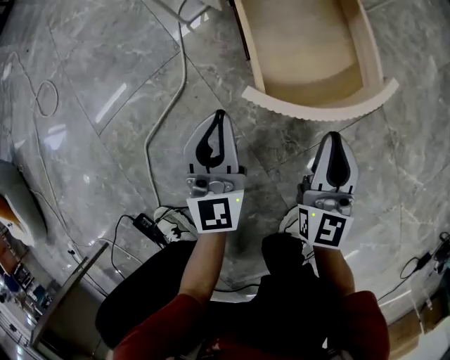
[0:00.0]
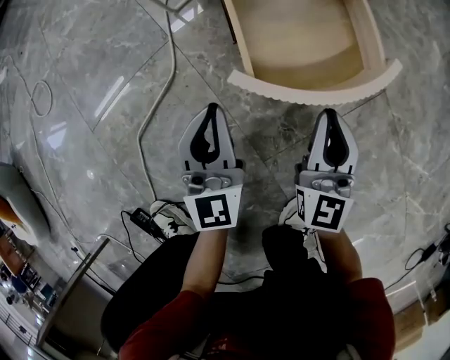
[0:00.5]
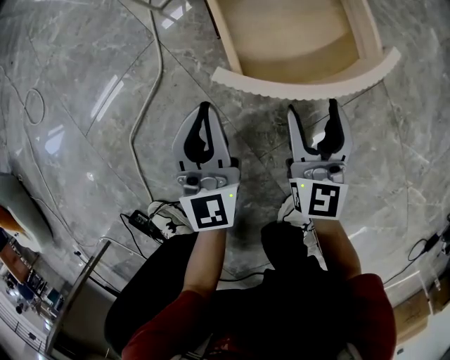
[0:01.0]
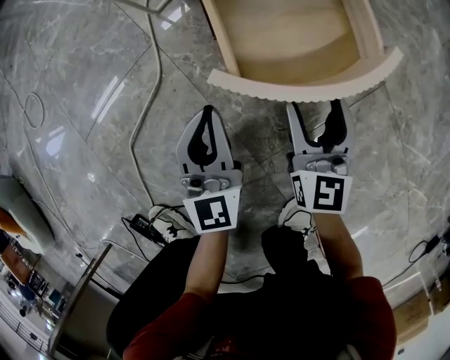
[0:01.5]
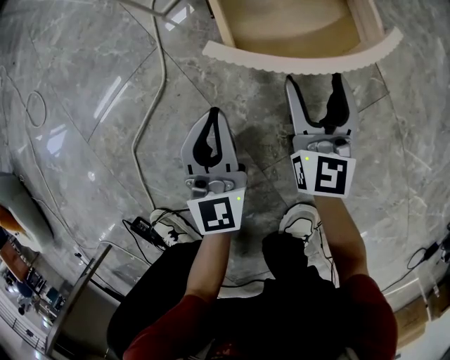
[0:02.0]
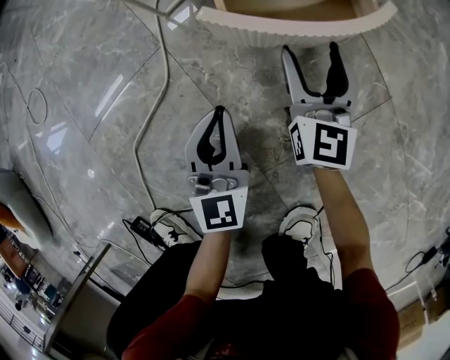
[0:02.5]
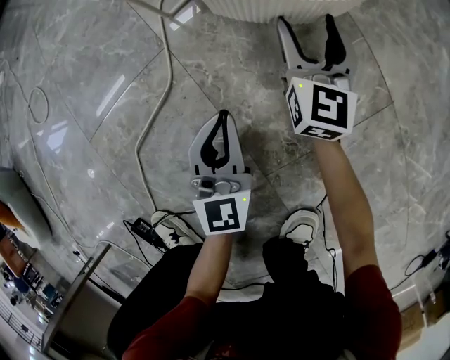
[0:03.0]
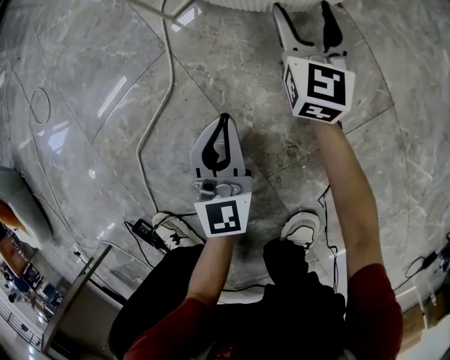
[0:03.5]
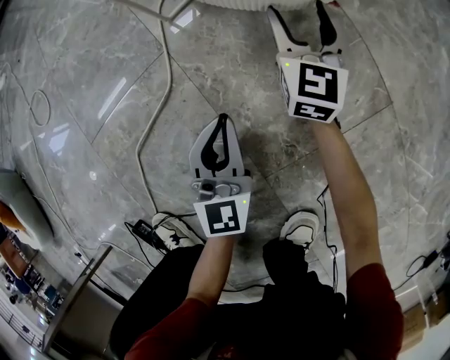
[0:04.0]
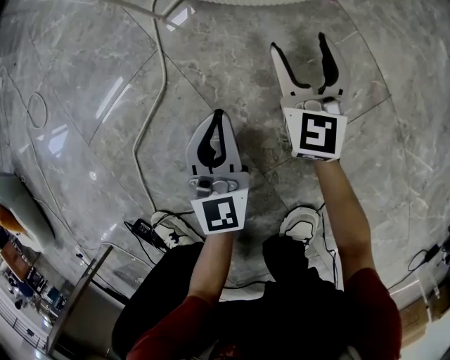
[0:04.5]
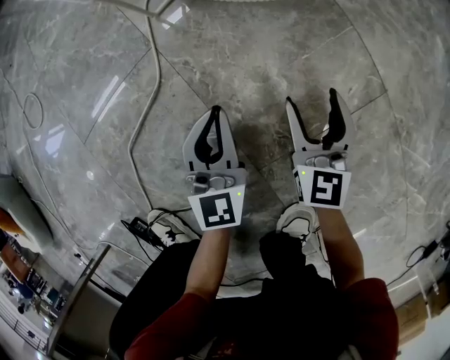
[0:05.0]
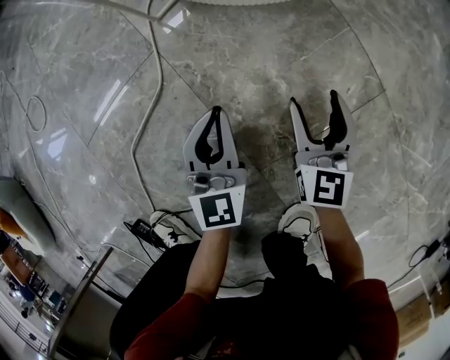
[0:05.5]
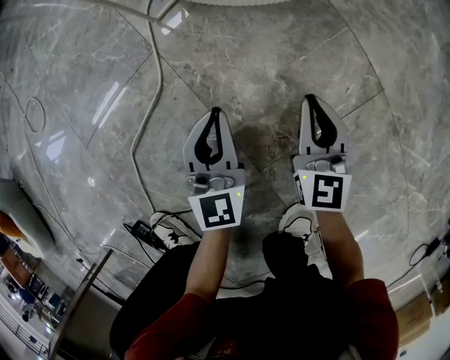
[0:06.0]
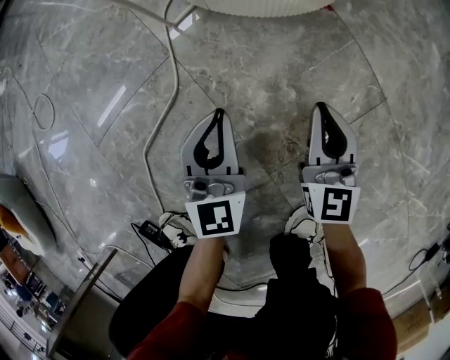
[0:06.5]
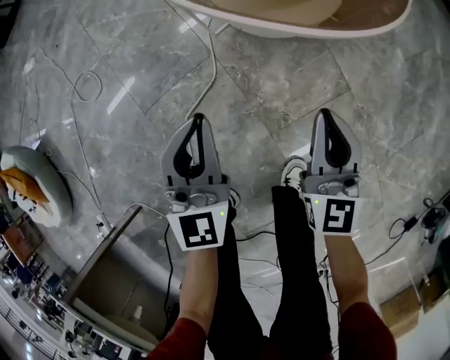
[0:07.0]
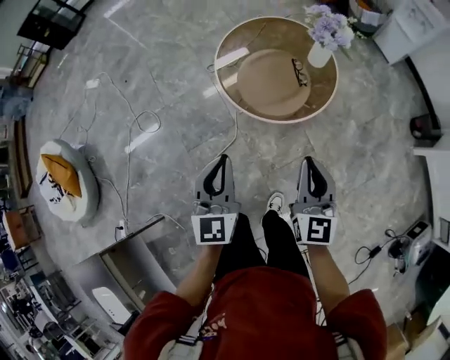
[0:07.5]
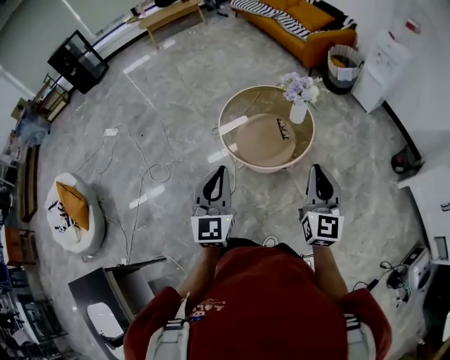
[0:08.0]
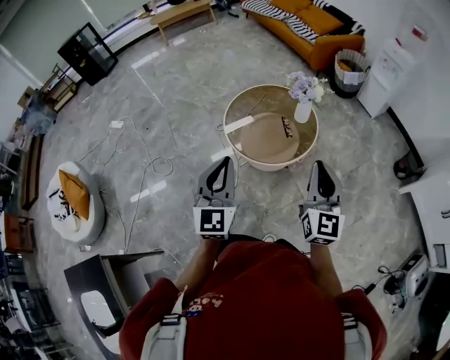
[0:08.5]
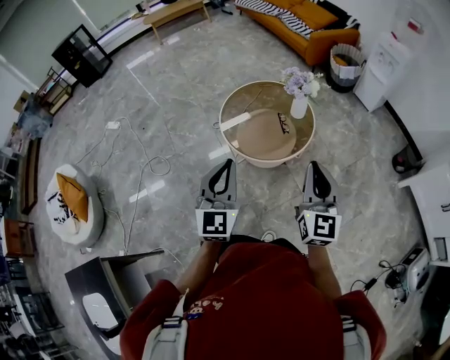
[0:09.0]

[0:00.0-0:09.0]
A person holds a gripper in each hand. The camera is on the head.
0:00.0 to 0:02.0: The right gripper heads forward and downward, covering roughly 10 cm, and opens up.
0:02.0 to 0:04.5: The right gripper shifts about 5 cm forward.
0:04.5 to 0:07.0: Both grippers travel together upward, roughly 35 cm. The right gripper closes its fingers.
0:07.0 to 0:09.0: Both grippers move upward, approximately 50 cm.

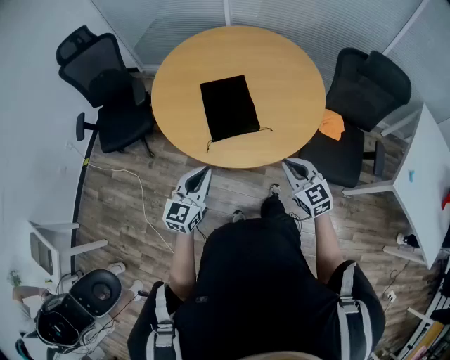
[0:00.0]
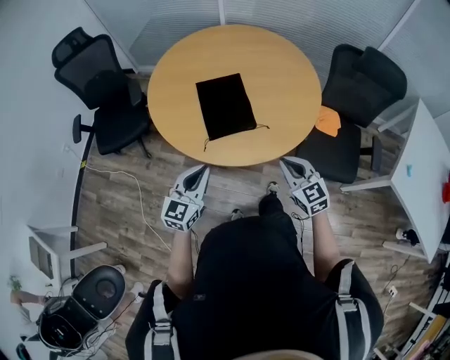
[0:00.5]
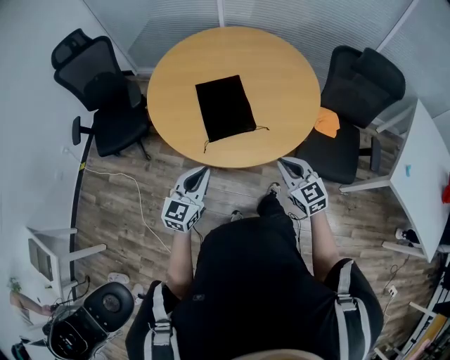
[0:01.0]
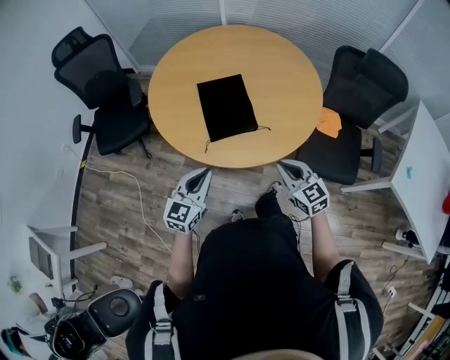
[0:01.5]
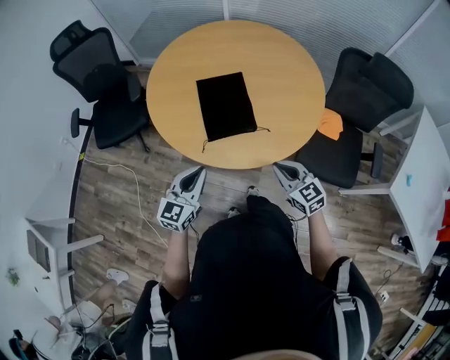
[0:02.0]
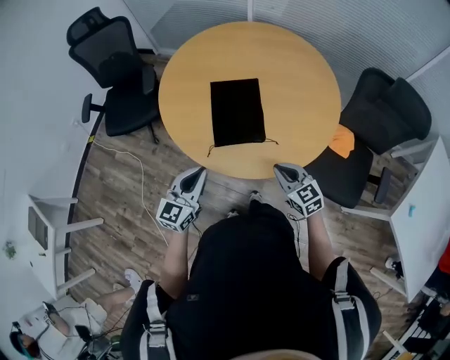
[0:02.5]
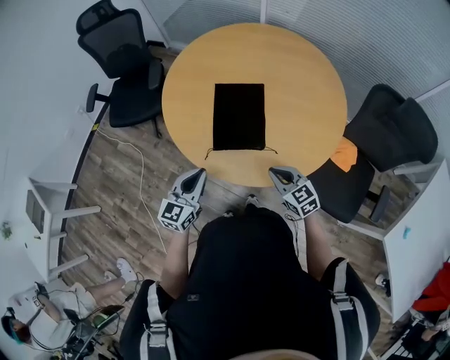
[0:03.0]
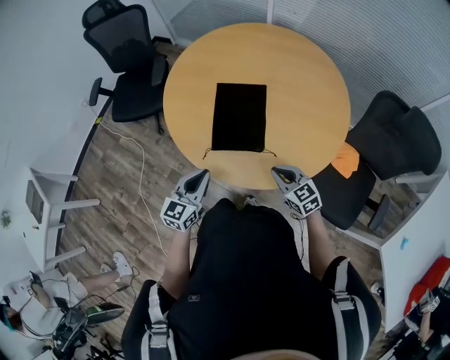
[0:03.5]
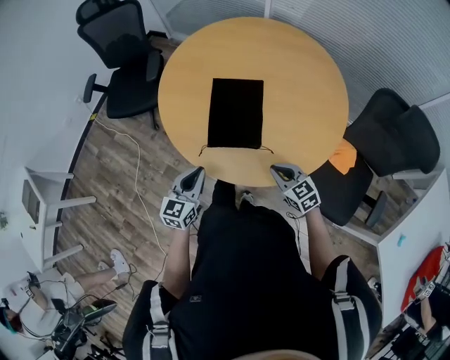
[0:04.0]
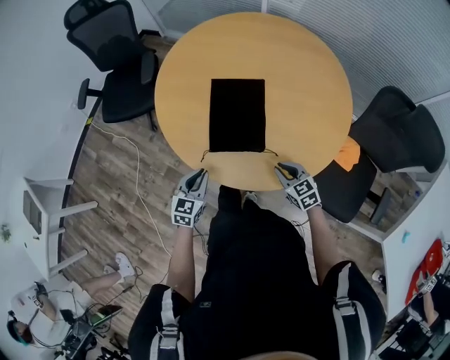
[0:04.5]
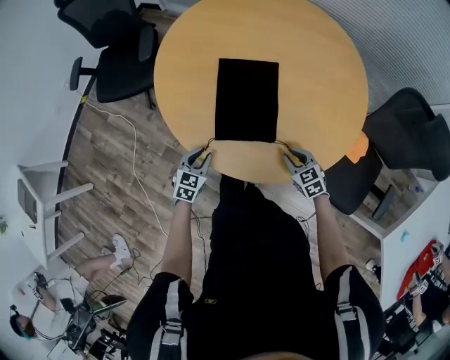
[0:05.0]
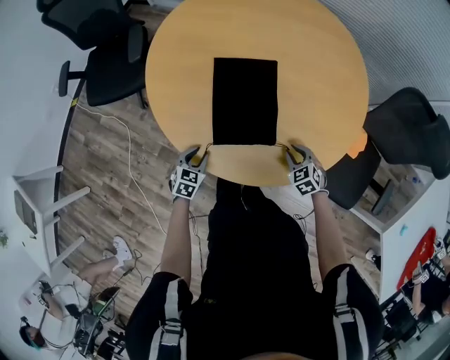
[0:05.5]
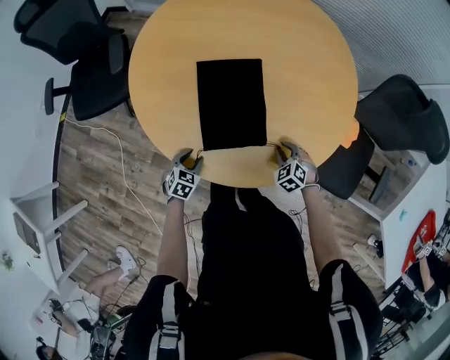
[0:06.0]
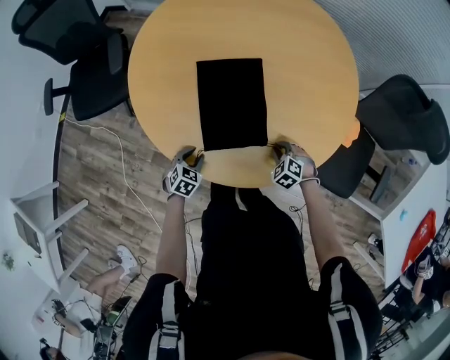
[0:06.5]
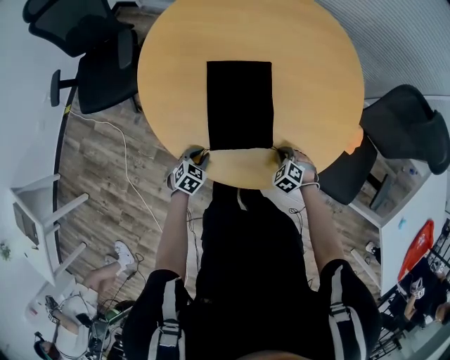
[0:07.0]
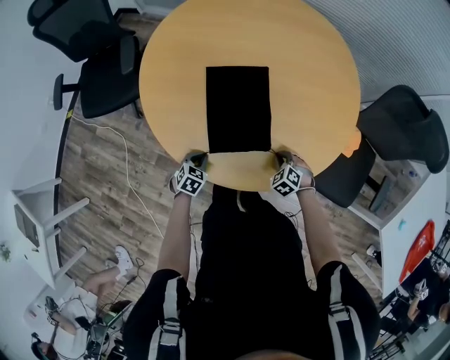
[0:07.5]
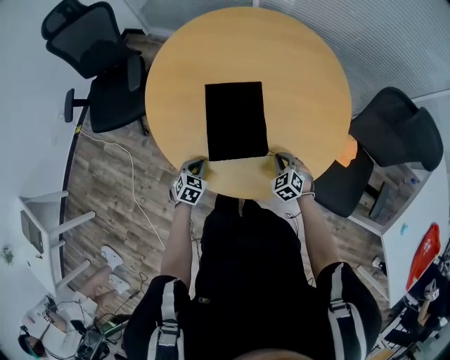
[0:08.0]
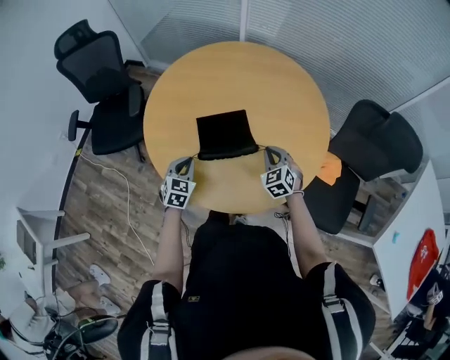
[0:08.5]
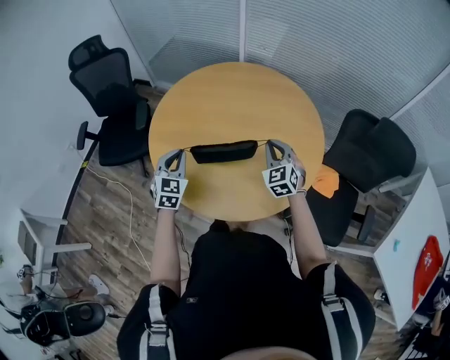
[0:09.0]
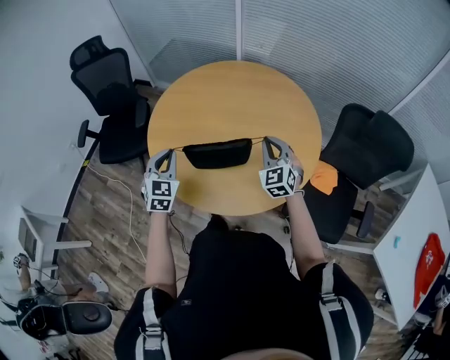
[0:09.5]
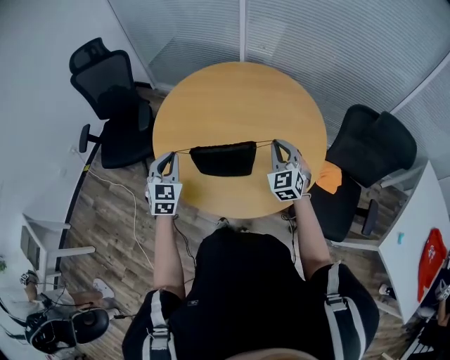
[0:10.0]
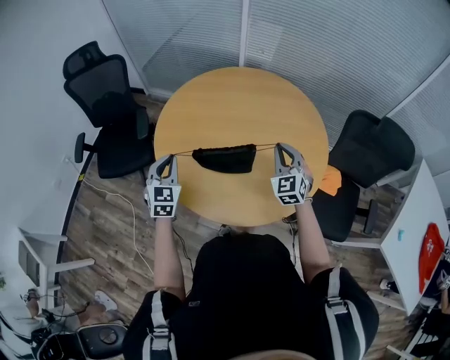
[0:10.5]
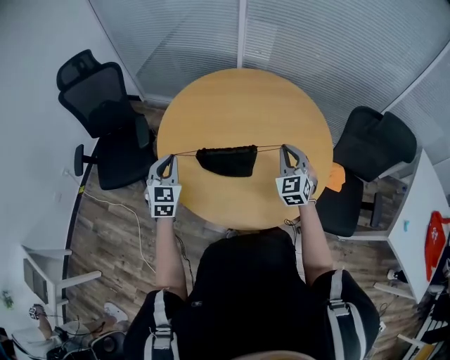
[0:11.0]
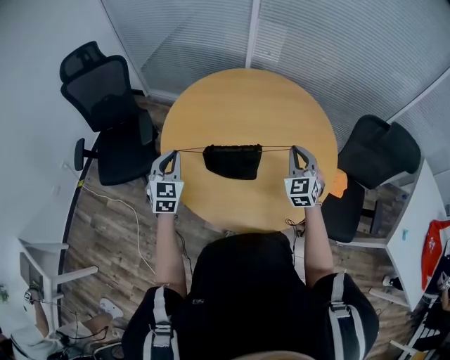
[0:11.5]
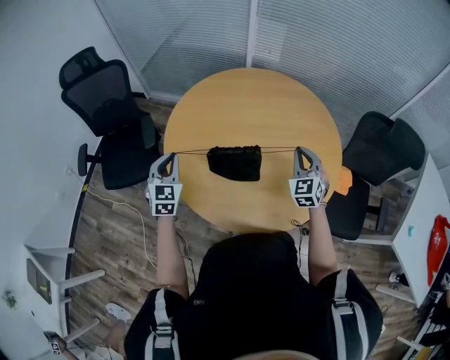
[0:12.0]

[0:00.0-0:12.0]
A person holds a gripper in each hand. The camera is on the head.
0:00.0 to 0:02.0: There are only small adjustments of the grippers.
0:02.0 to 0:04.0: The right gripper goes some 10 cm forward and downward; the left gripper shifts roughly 5 cm downward, and changes its angle by approximately 20 degrees.
0:04.0 to 0:06.0: Both grippers move downward, approximately 20 cm. The right gripper turns by roughly 40 degrees; the left gripper tilts its fingers about 40 degrees downward, and opens.
0:06.0 to 0:08.0: Both grippers travel together upward, approximately 5 cm. The left gripper closes.
0:08.0 to 0:10.0: Both grippers travel together upward, about 30 cm. The right gripper tilts its fingers some 40 degrees upward. The left gripper points its fingers approximately 30 degrees further upward.
0:10.0 to 0:12.0: The right gripper changes place by approximately 5 cm, while the left gripper shifts about 15 cm to the left and forward.

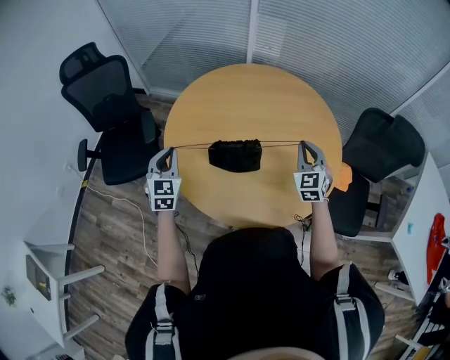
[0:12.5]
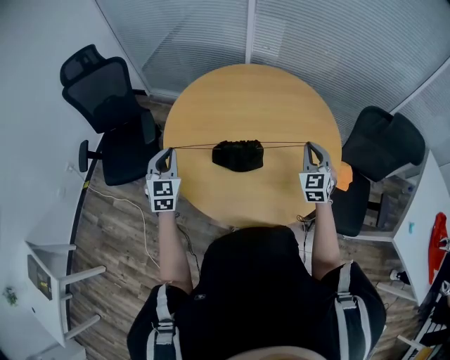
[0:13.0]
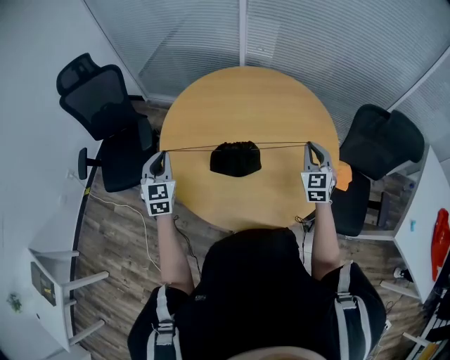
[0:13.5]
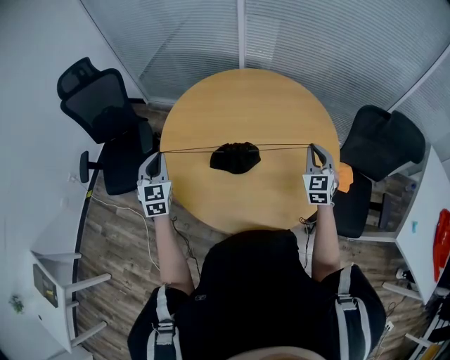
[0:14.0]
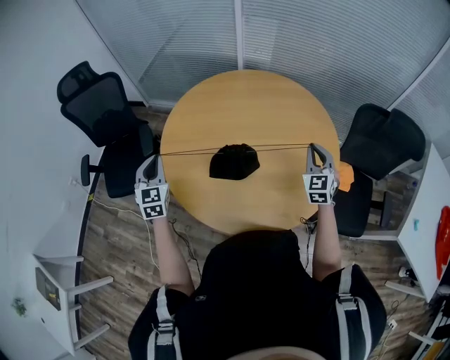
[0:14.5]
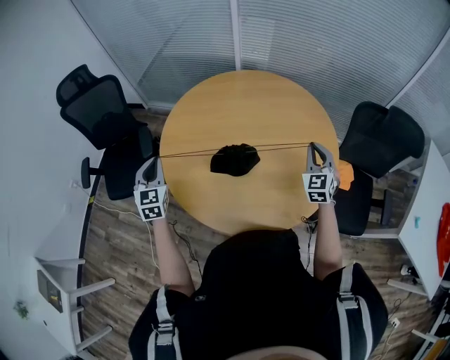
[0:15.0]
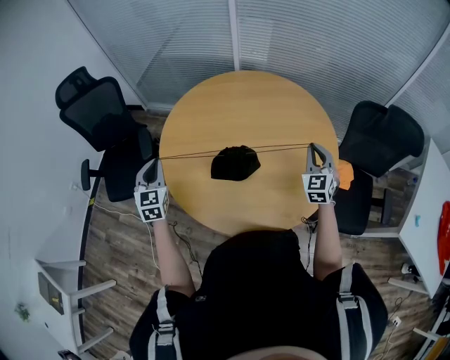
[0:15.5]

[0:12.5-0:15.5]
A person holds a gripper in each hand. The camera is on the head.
0:12.5 to 0:14.0: The right gripper heads to the right, covering about 5 cm.
0:14.0 to 0:15.5: Both grippers stay about where they are.

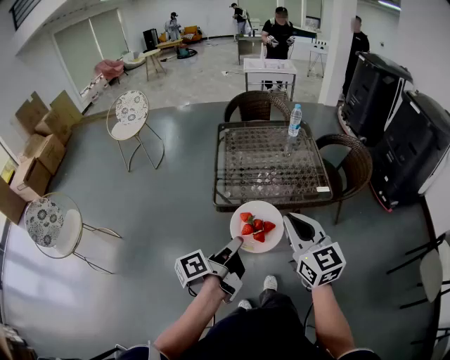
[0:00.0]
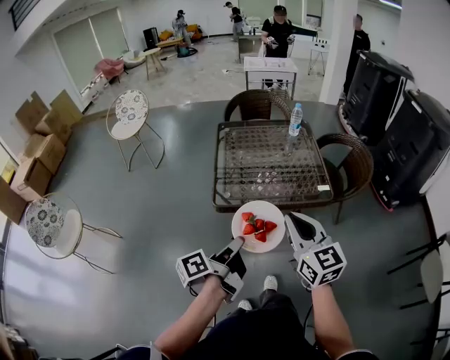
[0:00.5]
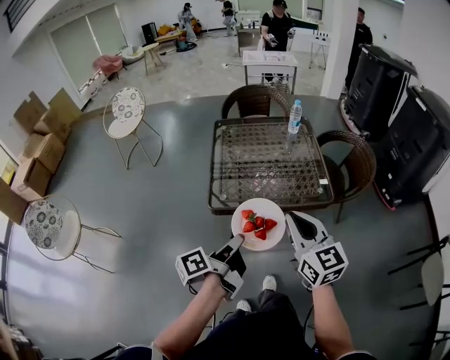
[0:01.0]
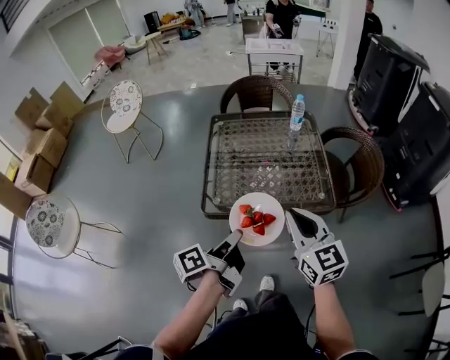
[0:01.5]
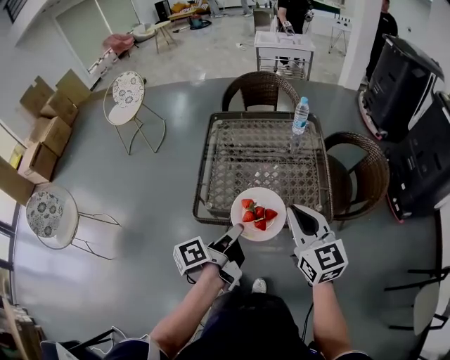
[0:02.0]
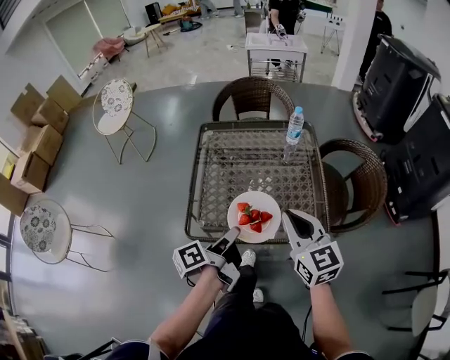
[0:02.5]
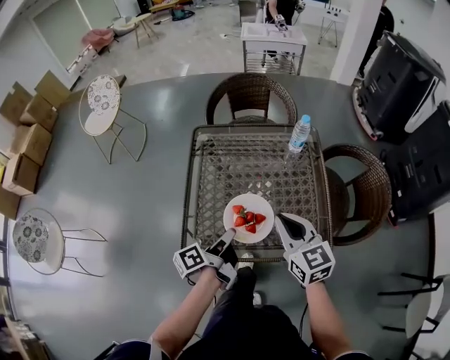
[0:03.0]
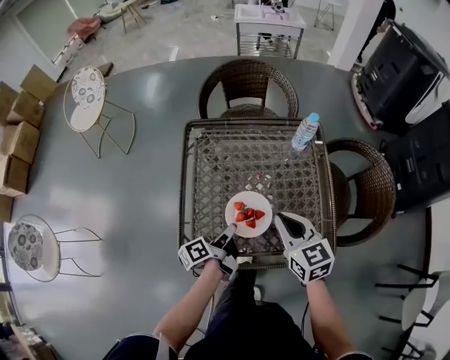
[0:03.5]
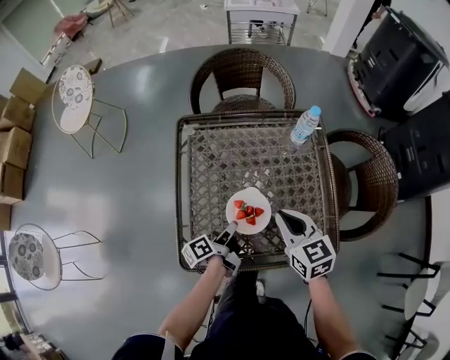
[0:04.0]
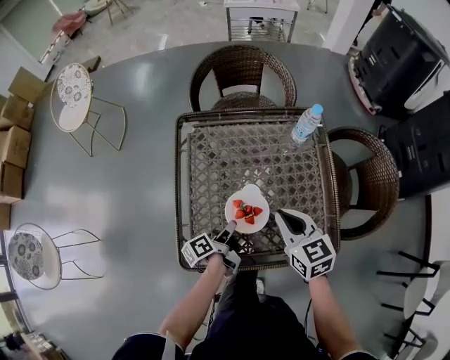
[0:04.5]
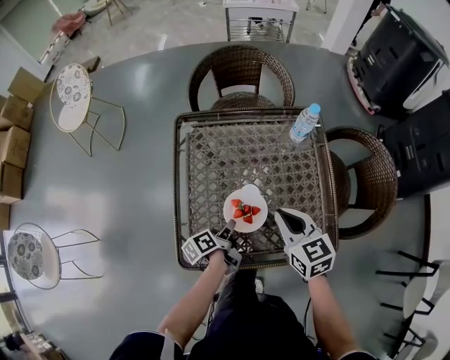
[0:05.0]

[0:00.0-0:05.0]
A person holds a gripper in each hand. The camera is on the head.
0:00.0 to 0:02.5: The two grippers go about 25 cm forward.
0:02.5 to 0:05.0: The left gripper is displaced downward and forward by roughly 25 cm, and swivels about 20 degrees. The right gripper is displaced forward and downward by some 20 cm.
